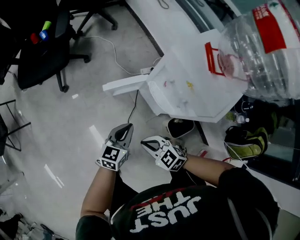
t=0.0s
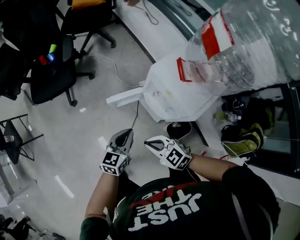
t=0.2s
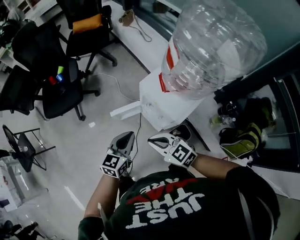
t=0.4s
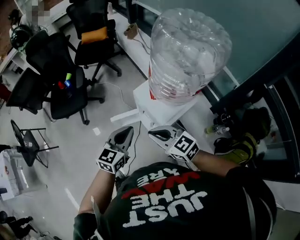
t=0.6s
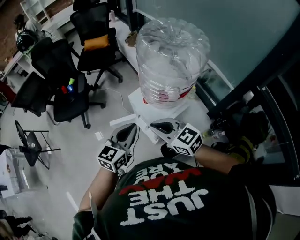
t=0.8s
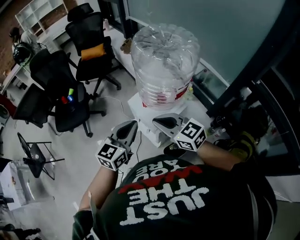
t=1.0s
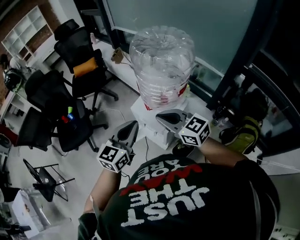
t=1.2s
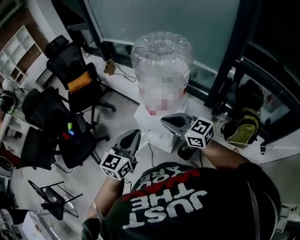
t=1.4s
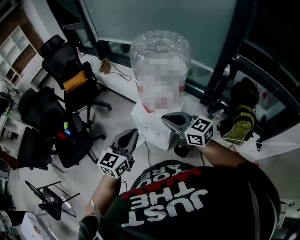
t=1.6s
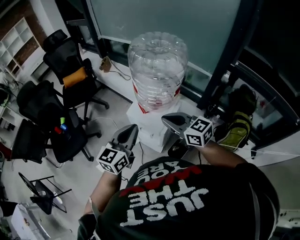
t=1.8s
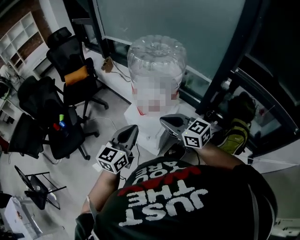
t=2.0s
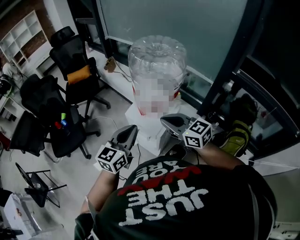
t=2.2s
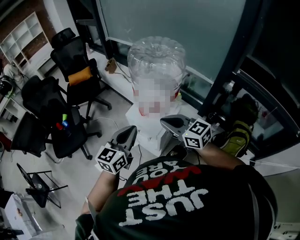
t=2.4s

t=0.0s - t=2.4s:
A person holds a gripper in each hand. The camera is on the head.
t=0.0s - t=1.2s: The right gripper heads upward and to the right, covering roughly 50 cm, and angles its fingers upward, by approximately 30 degrees; the left gripper heads upward, covering some 50 cm, and swivels approximately 30 degrees.
t=1.2s - t=2.4s: The right gripper shifts by about 5 cm.

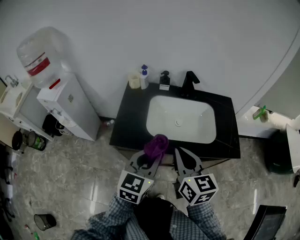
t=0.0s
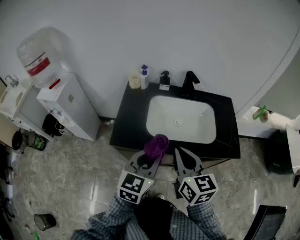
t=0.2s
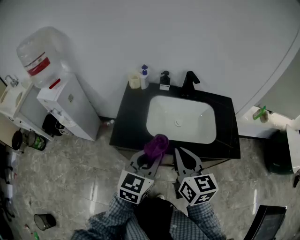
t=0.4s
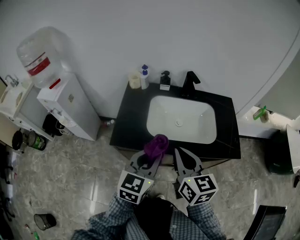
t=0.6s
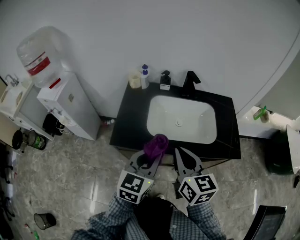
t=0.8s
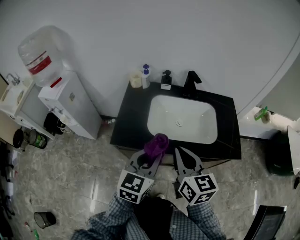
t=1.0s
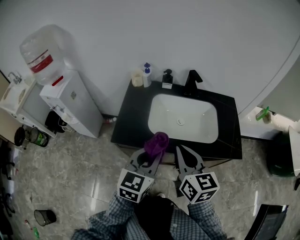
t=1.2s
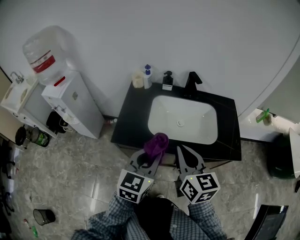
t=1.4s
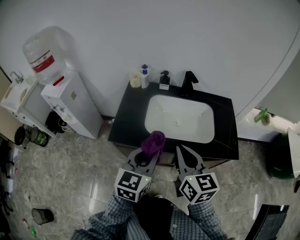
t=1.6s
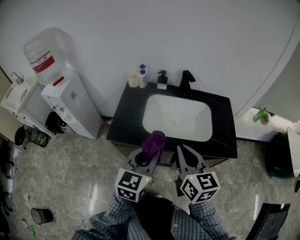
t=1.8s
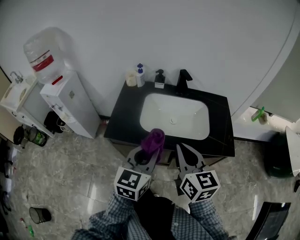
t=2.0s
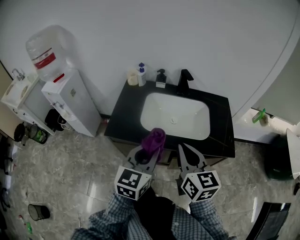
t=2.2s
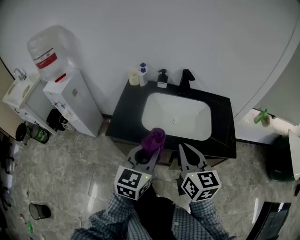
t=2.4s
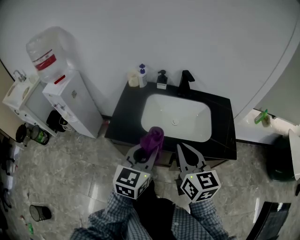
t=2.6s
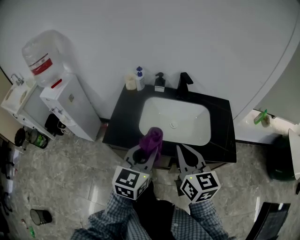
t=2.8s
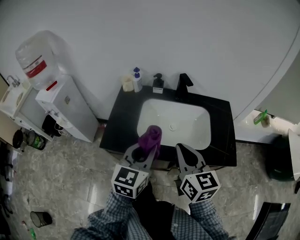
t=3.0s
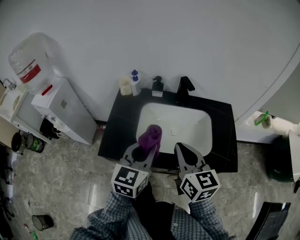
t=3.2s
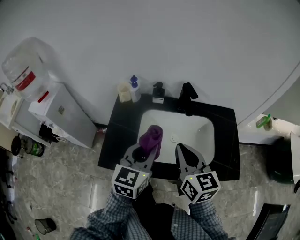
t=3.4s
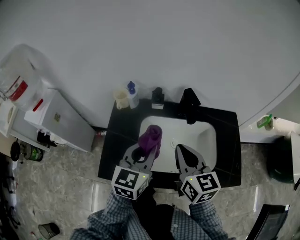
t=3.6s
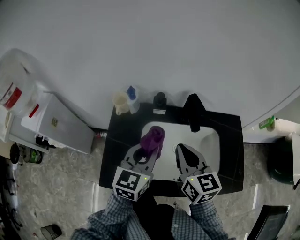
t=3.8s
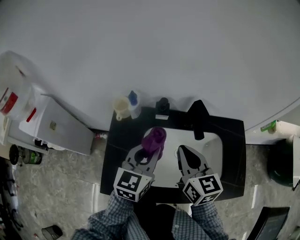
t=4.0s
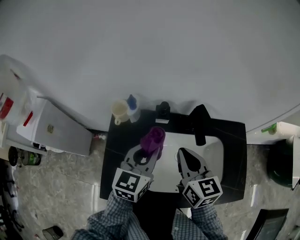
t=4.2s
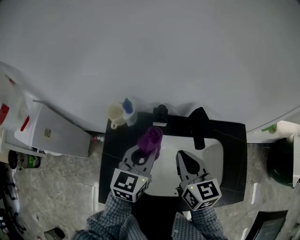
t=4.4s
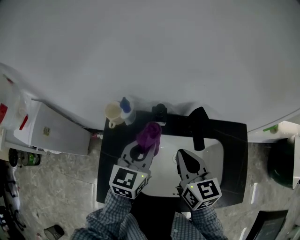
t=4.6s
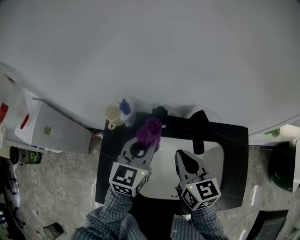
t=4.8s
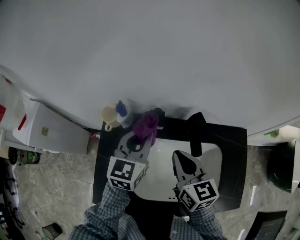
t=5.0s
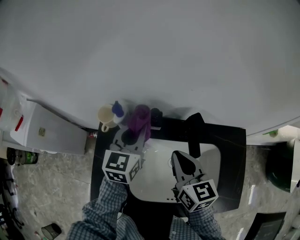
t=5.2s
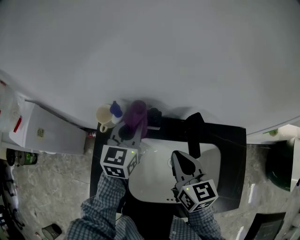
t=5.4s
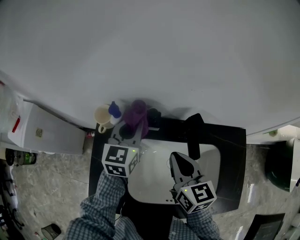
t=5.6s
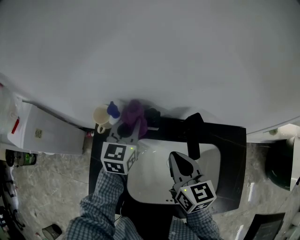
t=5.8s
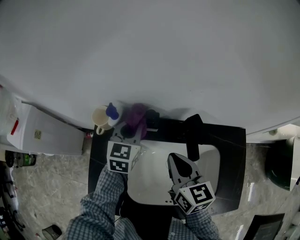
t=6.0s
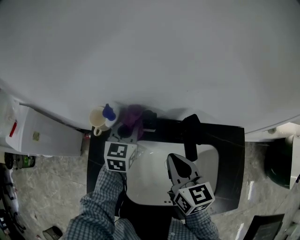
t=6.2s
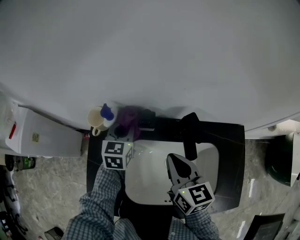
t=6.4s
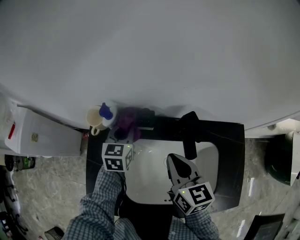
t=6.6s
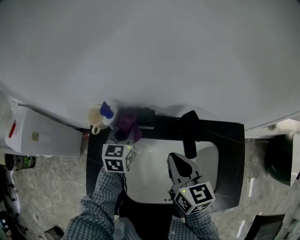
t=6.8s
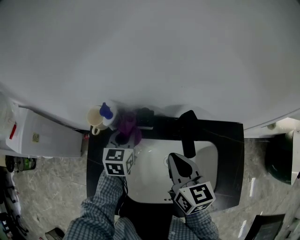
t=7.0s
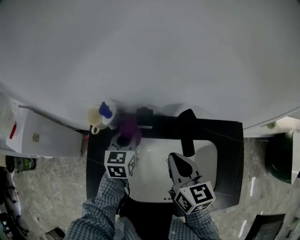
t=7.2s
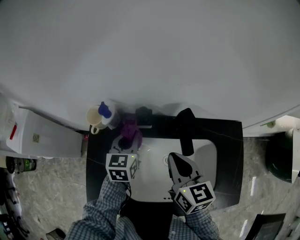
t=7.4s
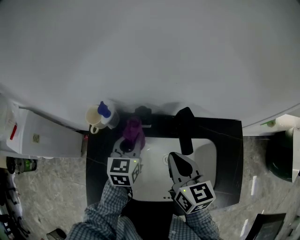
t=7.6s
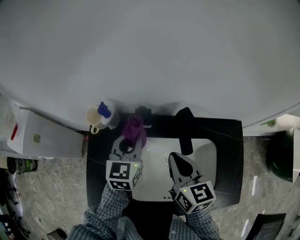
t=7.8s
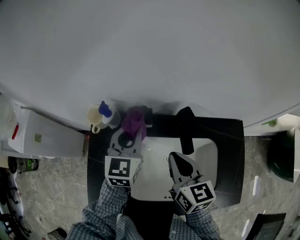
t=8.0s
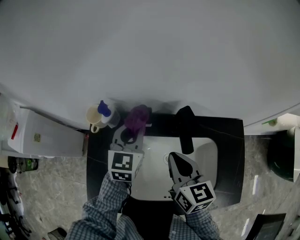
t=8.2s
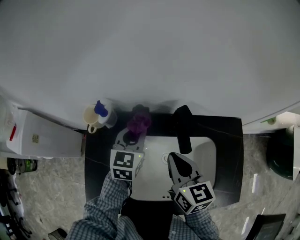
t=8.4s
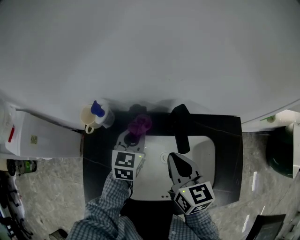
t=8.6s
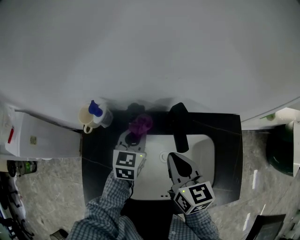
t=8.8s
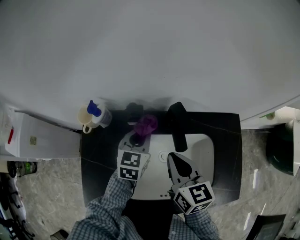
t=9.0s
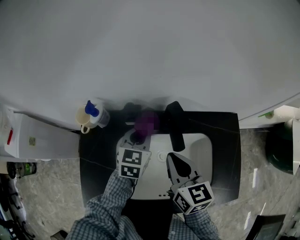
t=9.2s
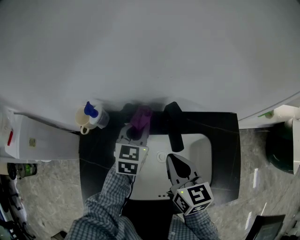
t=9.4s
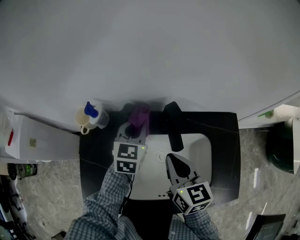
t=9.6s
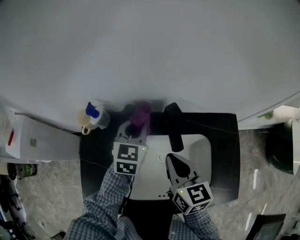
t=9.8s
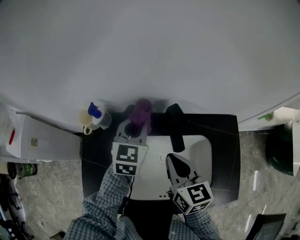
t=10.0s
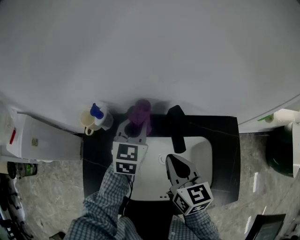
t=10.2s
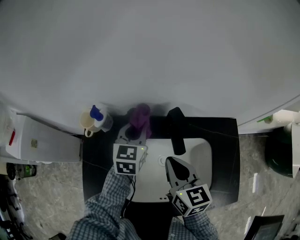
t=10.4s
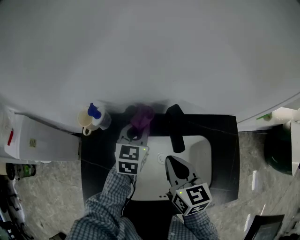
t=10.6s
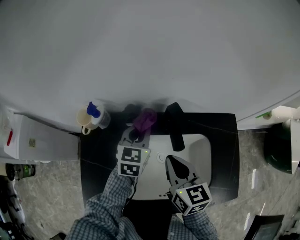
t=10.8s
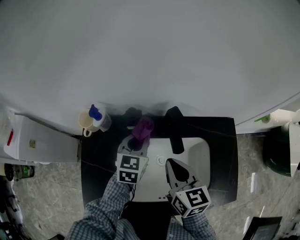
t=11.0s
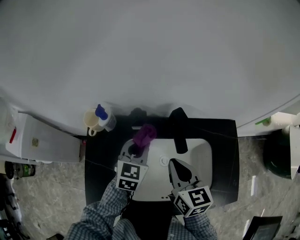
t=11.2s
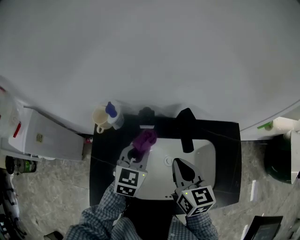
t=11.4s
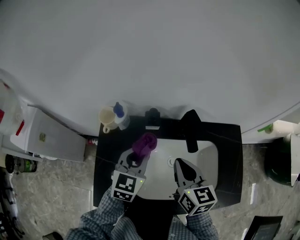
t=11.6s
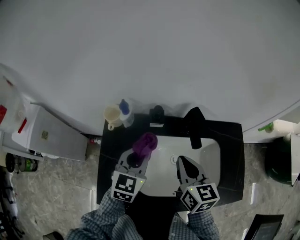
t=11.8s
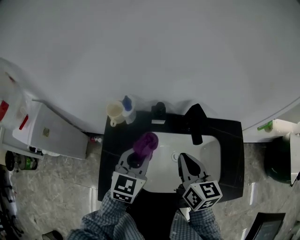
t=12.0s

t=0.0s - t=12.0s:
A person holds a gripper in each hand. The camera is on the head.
t=0.0s - t=1.6s: There are only small adjustments of the grippers.
t=1.6s - t=3.0s: The grippers both shift forward by some 5 cm.
t=3.0s - t=4.4s: Both grippers travel together forward, about 30 cm.
t=4.4s - t=6.0s: The left gripper shifts some 15 cm forward and downward. Meanwhile the right gripper shifts by approximately 5 cm.
t=6.0s - t=7.6s: The left gripper moves backward, about 5 cm.
t=7.6s - t=9.0s: The left gripper goes some 5 cm to the right, and goes upward and returns, approximately 5 cm each way.
t=9.0s - t=10.4s: The left gripper changes place by some 5 cm.
t=10.4s - t=12.0s: The left gripper travels backward and to the left by approximately 15 cm. Meanwhile the right gripper shifts by approximately 5 cm.

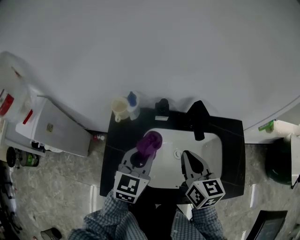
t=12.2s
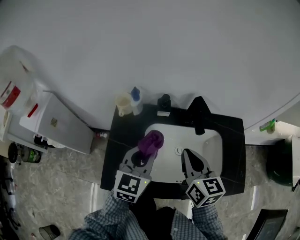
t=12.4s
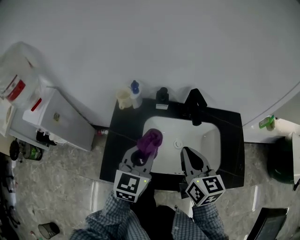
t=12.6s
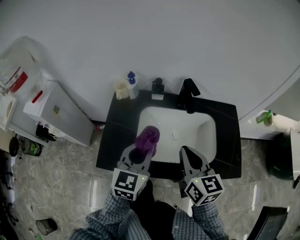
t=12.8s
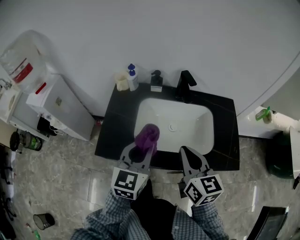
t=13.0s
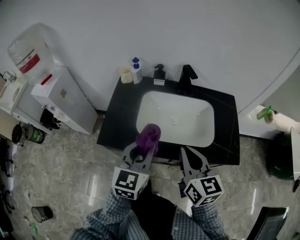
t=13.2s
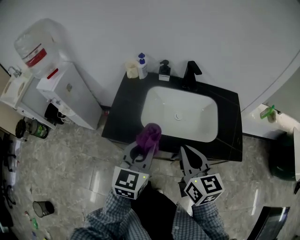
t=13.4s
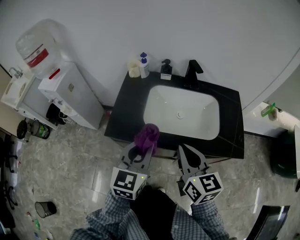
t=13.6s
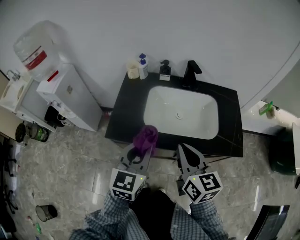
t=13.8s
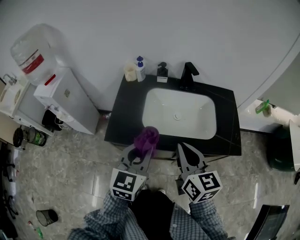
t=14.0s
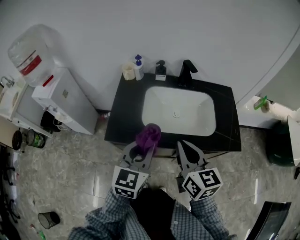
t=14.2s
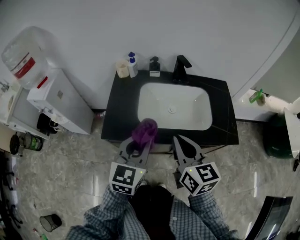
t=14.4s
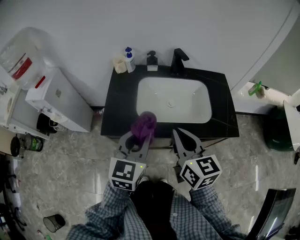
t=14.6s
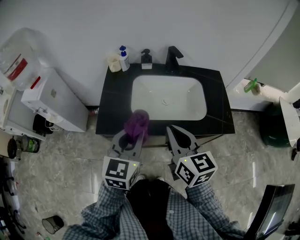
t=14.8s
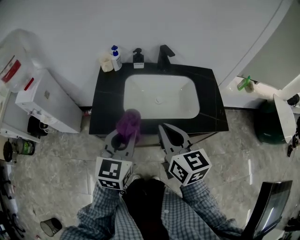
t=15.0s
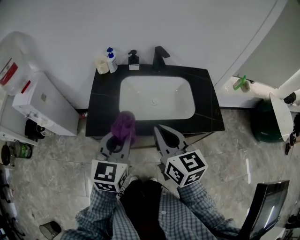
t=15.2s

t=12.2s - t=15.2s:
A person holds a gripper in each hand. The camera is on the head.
t=12.2s - t=13.8s: The grippers both shift backward by approximately 30 cm.
t=13.8s - t=15.2s: The grippers stay close to where they were, moving slightly.

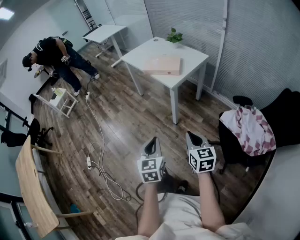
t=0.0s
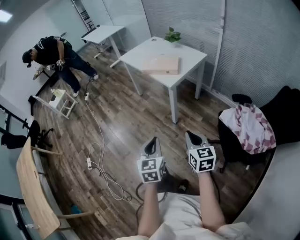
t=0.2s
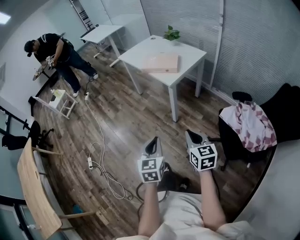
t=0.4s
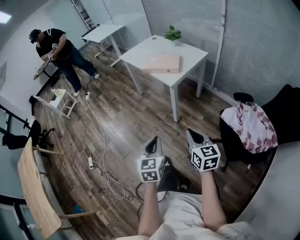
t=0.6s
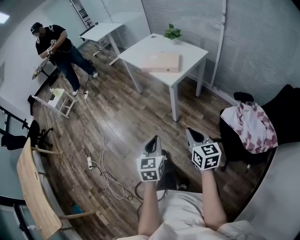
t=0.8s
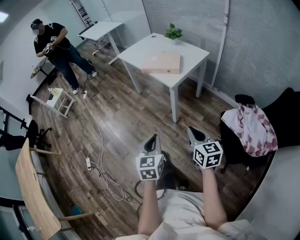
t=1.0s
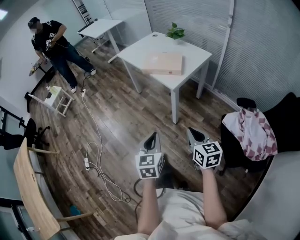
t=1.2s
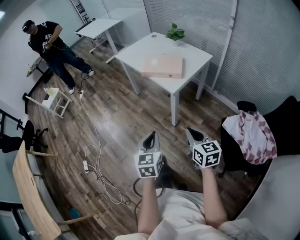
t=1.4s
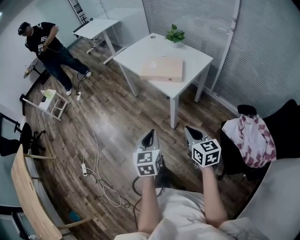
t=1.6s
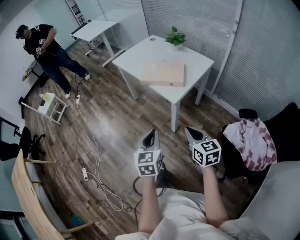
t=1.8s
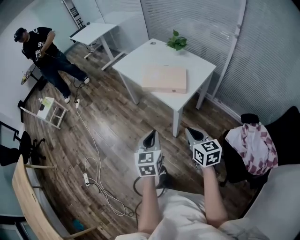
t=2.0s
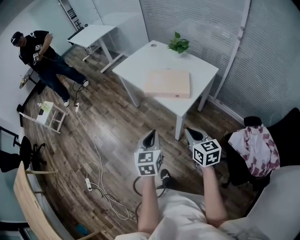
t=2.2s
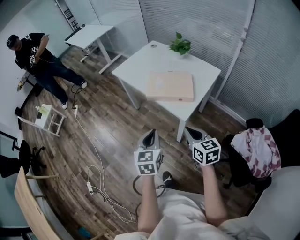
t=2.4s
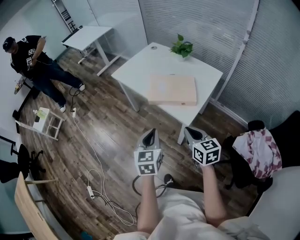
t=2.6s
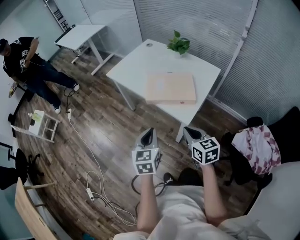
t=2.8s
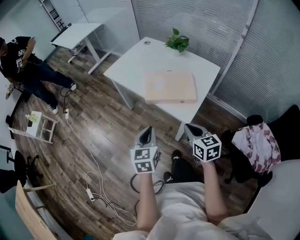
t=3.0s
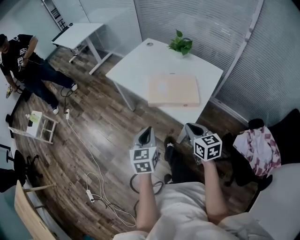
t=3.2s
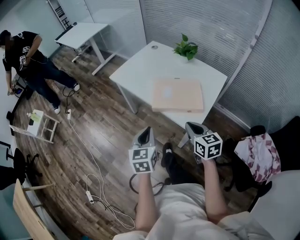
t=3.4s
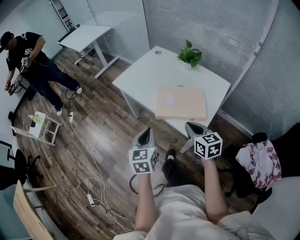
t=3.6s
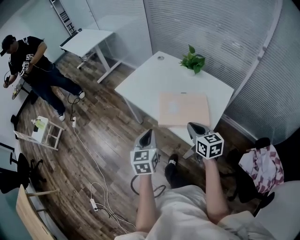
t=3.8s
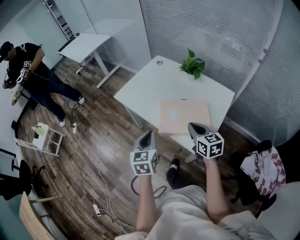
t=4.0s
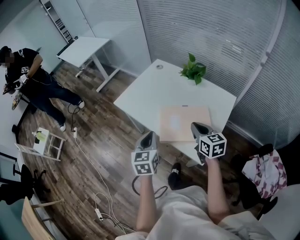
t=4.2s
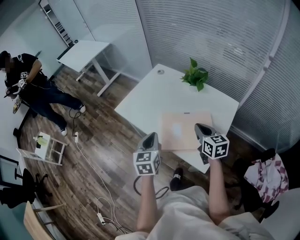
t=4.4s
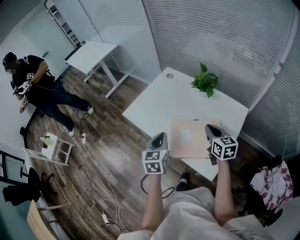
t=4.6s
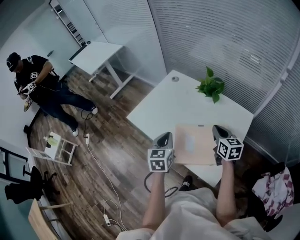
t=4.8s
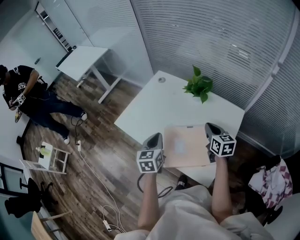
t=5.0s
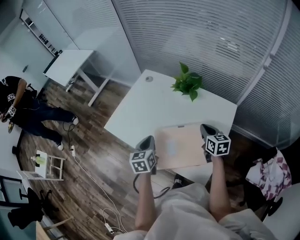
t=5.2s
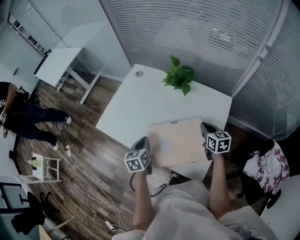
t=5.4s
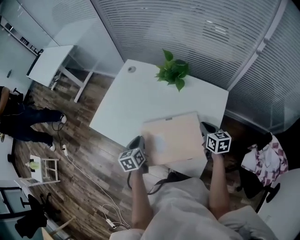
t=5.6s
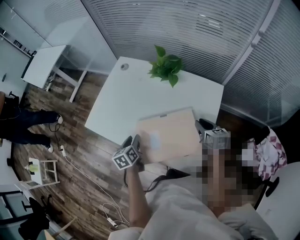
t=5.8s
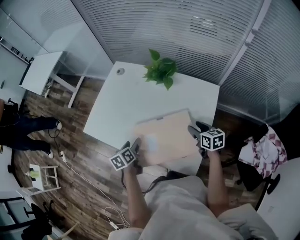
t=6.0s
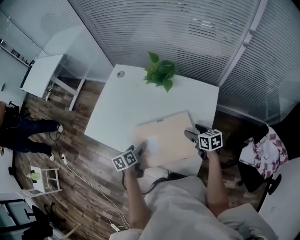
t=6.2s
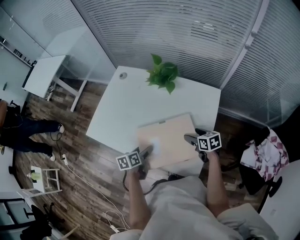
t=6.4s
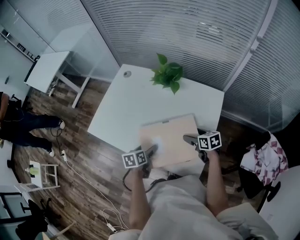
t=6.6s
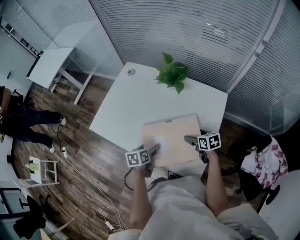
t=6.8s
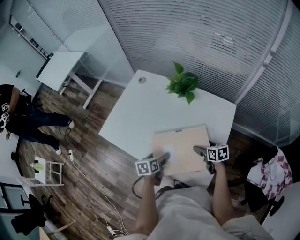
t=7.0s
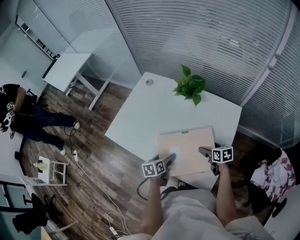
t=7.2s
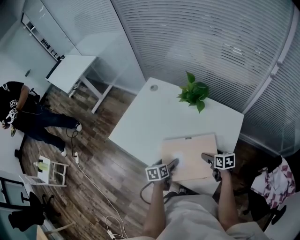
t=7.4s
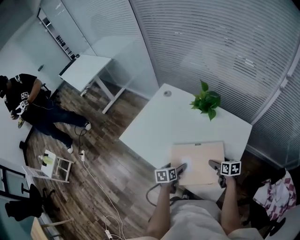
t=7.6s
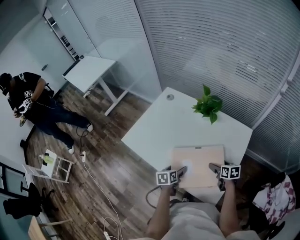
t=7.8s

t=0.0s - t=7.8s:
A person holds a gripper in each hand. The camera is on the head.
t=0.0s - t=1.6s: The grippers both shift forward by some 20 cm.
t=1.6s - t=3.2s: Both grippers move forward, approximately 30 cm.
t=3.2s - t=4.6s: Both grippers move forward, approximately 30 cm.
t=4.6s - t=6.2s: The right gripper moves downward and to the right, roughly 20 cm, rotates roughly 20 degrees, and opens up; the left gripper heads downward, covering some 20 cm, changes its angle by approximately 40 degrees, and opens.
t=6.2s - t=7.8s: The right gripper ends up approximately 5 cm from where it was.
